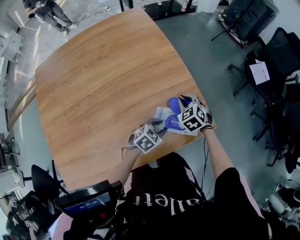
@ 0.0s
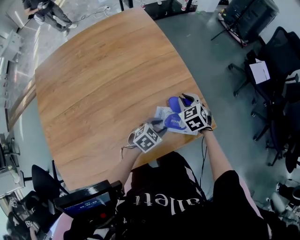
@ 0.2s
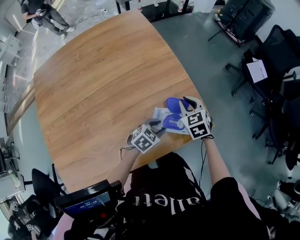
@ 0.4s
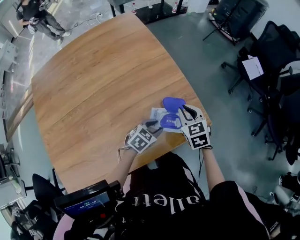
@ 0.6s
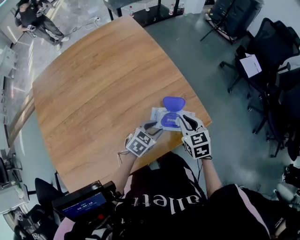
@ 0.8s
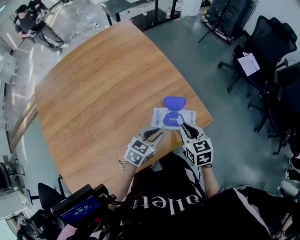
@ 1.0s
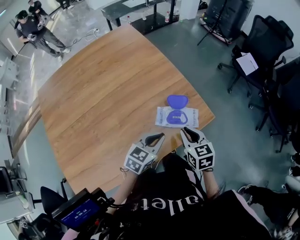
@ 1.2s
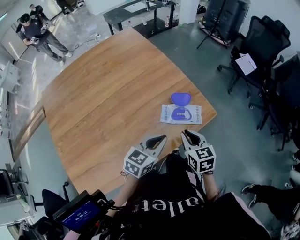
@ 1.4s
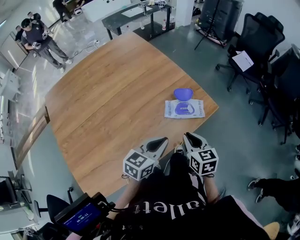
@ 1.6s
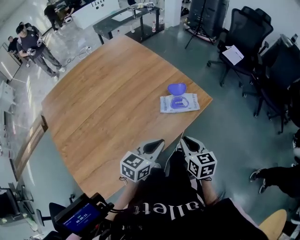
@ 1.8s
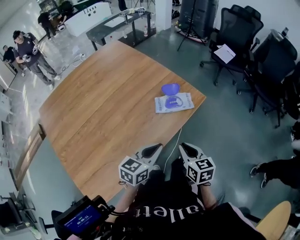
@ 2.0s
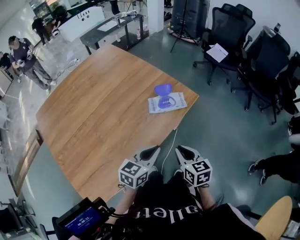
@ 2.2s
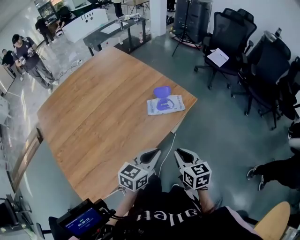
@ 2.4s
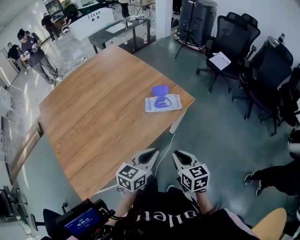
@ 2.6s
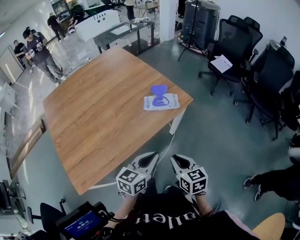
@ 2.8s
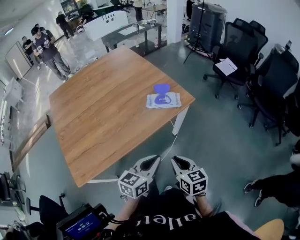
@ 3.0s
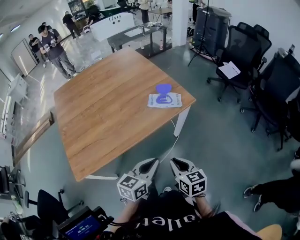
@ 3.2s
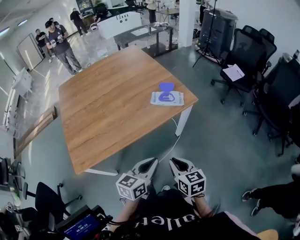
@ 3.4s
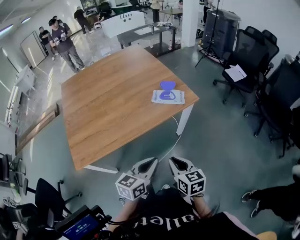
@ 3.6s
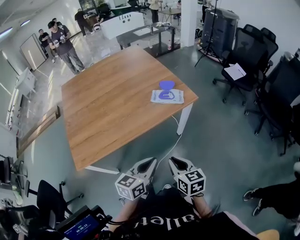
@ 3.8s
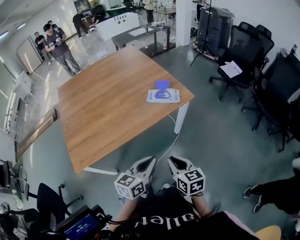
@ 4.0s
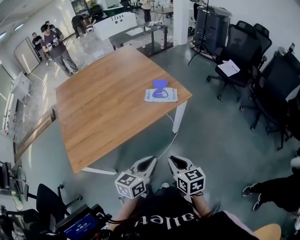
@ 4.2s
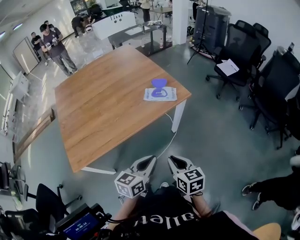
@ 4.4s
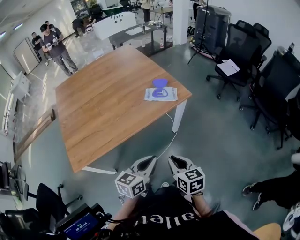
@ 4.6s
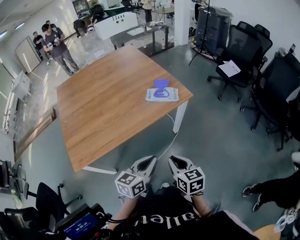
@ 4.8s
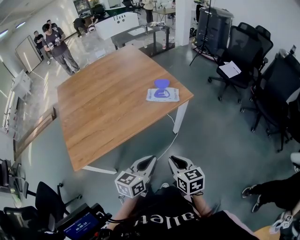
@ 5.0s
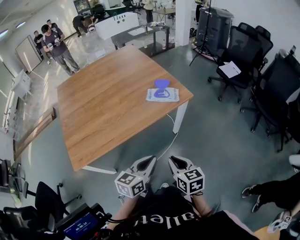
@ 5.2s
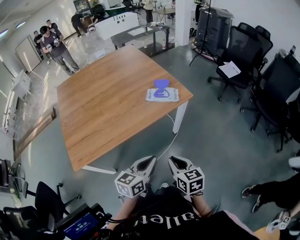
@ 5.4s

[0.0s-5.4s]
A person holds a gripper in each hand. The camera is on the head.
0.0s to 1.4s: The right gripper heads backward, covering approximately 25 cm, and rotates around the line of its fingers by about 40 degrees, clockwise from behind, while the left gripper heads upward and backward, covering roughly 20 cm, rotates approximately 30 degrees, and closes its fingers.
1.4s to 2.8s: The right gripper heads backward, covering some 25 cm, while the left gripper shifts about 25 cm backward and to the right.
2.8s to 4.0s: The grippers both shift backward by approximately 10 cm.
4.0s to 5.4s: The two grippers keep their place.

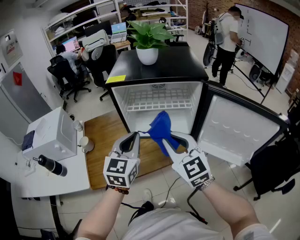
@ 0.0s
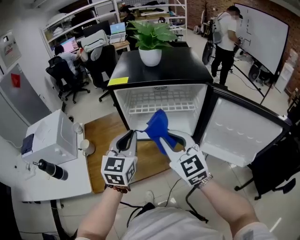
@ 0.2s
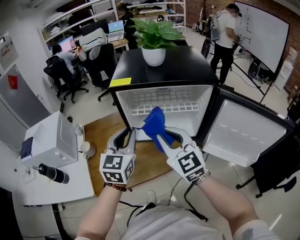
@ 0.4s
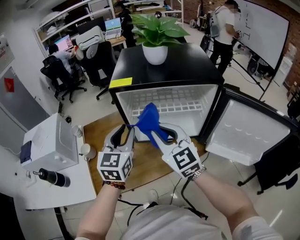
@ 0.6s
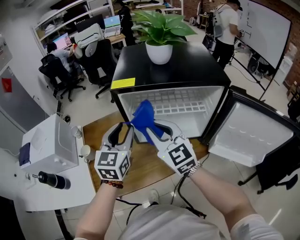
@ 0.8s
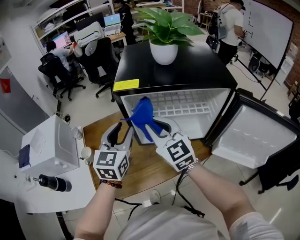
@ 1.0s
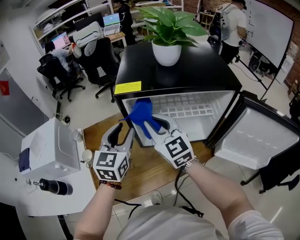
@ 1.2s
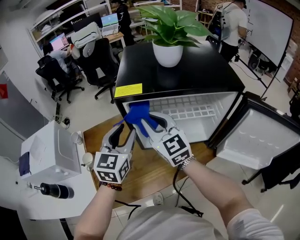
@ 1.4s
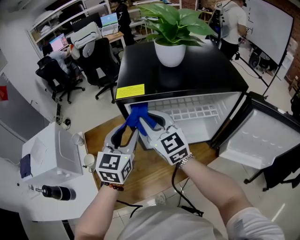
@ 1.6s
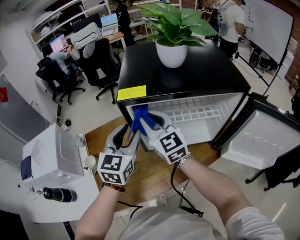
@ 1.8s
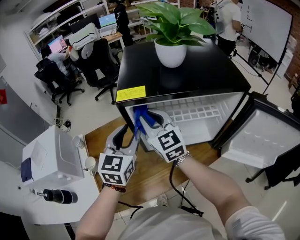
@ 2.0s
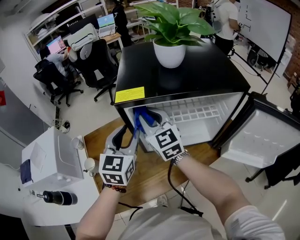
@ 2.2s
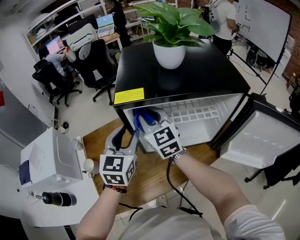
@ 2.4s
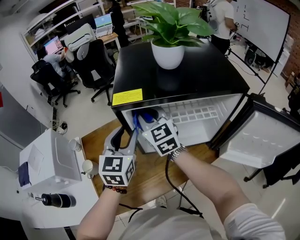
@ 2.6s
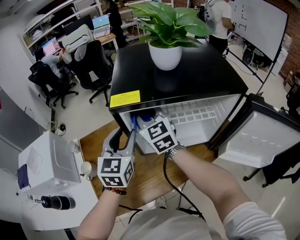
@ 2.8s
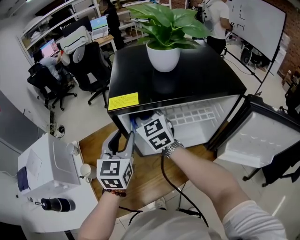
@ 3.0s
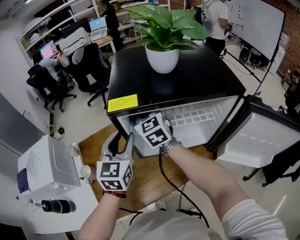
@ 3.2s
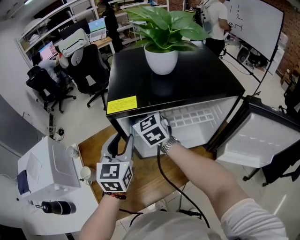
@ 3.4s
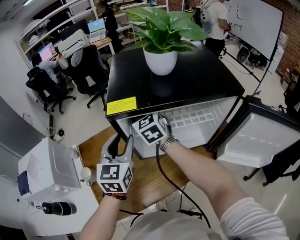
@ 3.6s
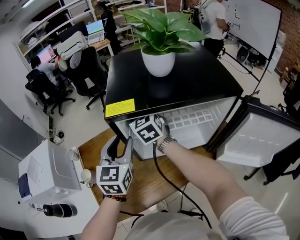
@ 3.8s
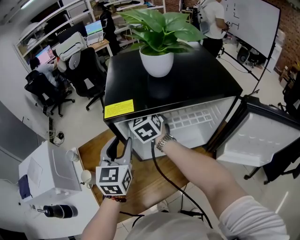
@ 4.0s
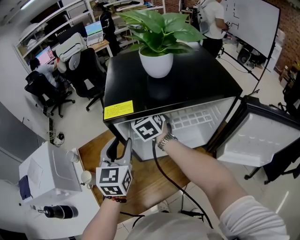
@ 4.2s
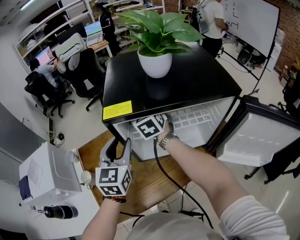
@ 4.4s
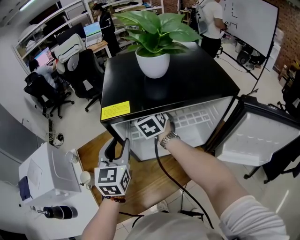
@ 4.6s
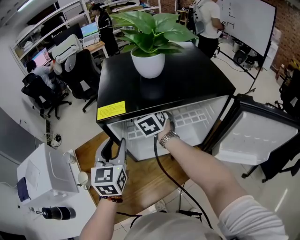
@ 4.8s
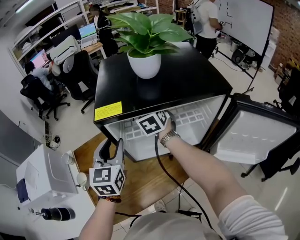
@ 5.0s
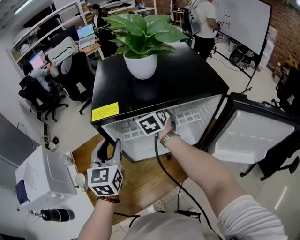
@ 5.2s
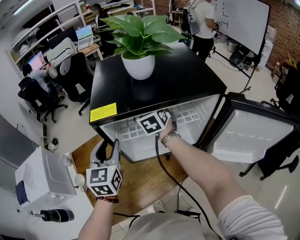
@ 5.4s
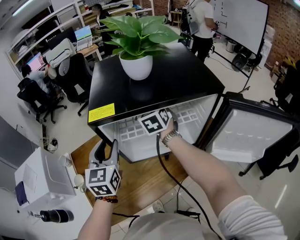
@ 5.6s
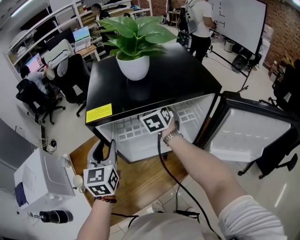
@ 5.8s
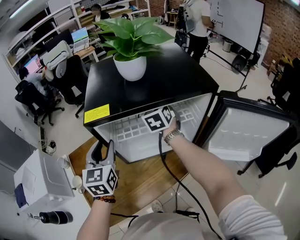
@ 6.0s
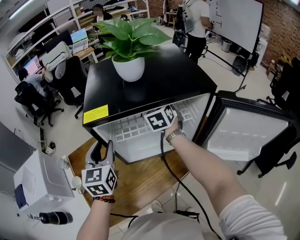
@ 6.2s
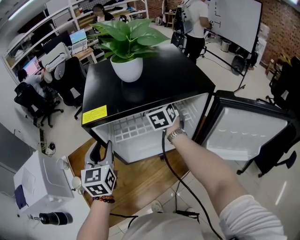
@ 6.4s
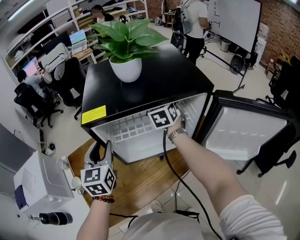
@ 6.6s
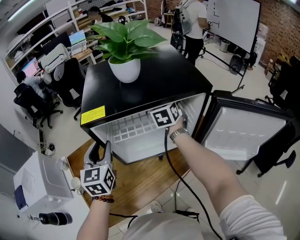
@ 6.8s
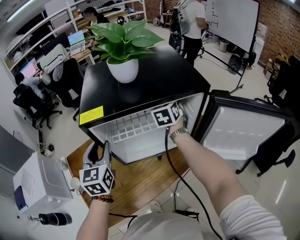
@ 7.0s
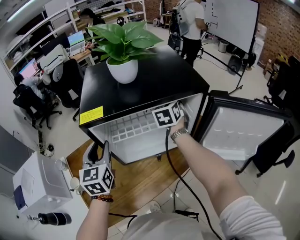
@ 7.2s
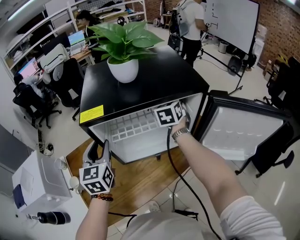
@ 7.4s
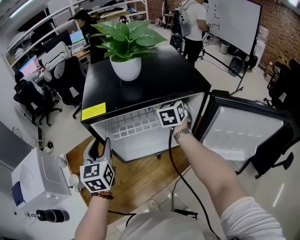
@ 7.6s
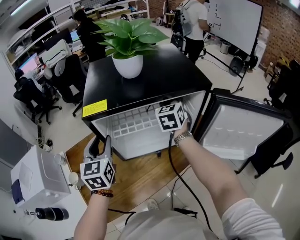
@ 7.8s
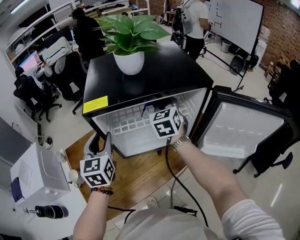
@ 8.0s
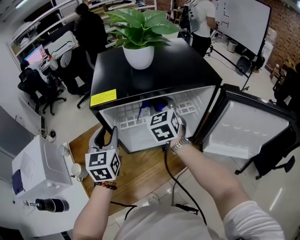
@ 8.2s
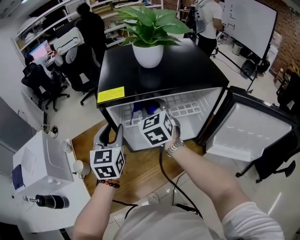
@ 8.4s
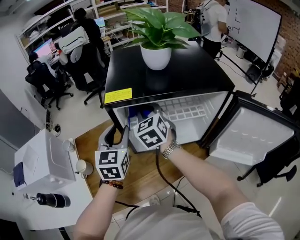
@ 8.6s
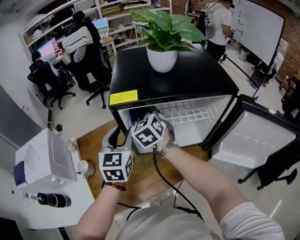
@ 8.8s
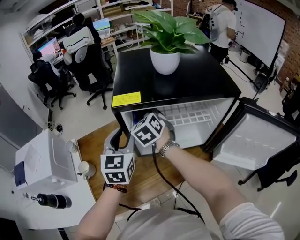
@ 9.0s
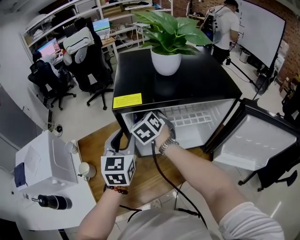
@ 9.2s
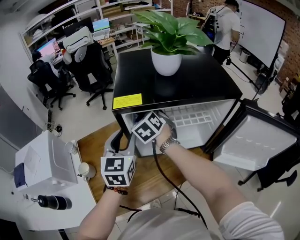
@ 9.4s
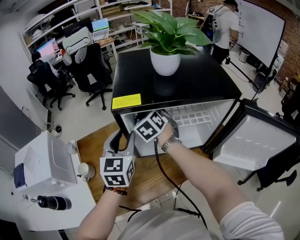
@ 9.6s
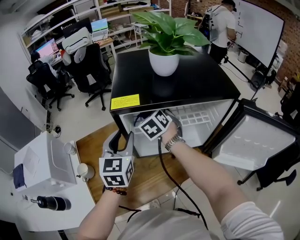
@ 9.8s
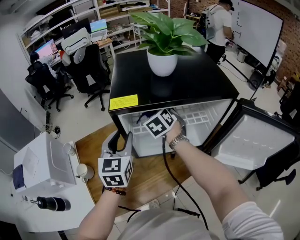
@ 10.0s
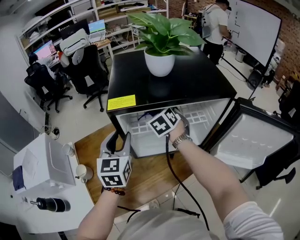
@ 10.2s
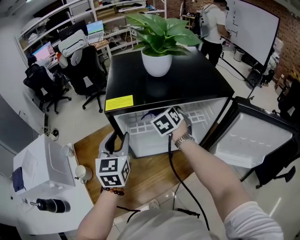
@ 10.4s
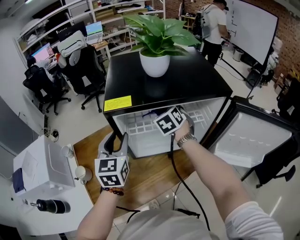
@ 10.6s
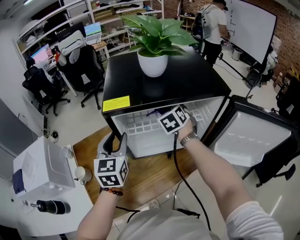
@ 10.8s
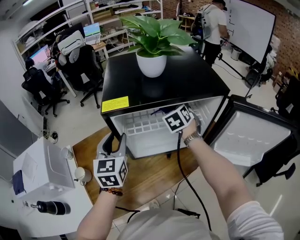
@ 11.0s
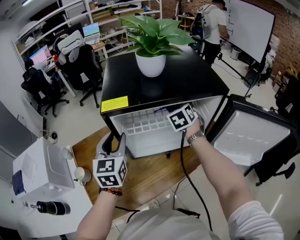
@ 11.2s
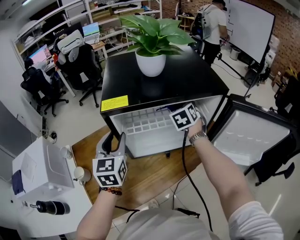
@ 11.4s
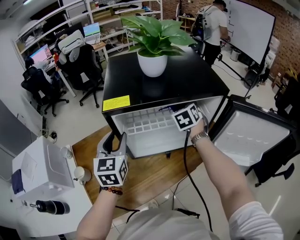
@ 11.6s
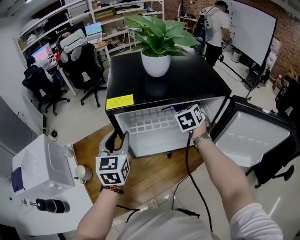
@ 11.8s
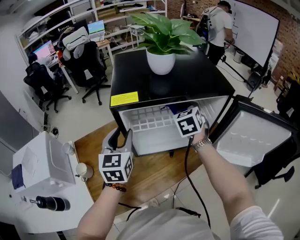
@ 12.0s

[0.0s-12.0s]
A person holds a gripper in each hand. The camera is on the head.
0.0s to 1.6s: Both grippers travel together forward and to the left, some 25 cm. The left gripper opens up.
1.6s to 3.0s: The right gripper shifts some 10 cm forward.
3.0s to 4.4s: The right gripper heads forward, covering roughly 5 cm.
4.4s to 6.0s: The right gripper shifts about 15 cm to the right.
6.0s to 7.6s: The right gripper goes approximately 10 cm to the right.
7.6s to 9.0s: The right gripper heads to the left, covering about 25 cm, and rotates roughly 30 degrees.
9.0s to 10.4s: The right gripper moves to the right, about 15 cm.
10.4s to 12.0s: The right gripper is displaced to the right by about 5 cm.

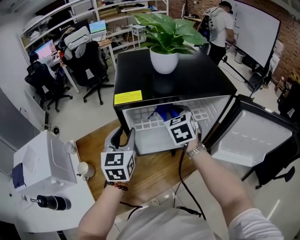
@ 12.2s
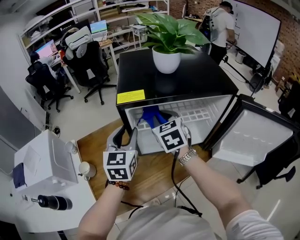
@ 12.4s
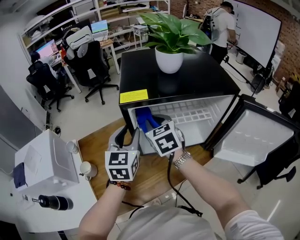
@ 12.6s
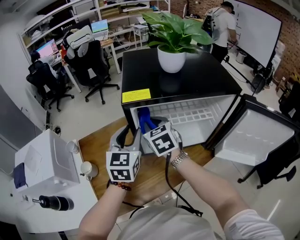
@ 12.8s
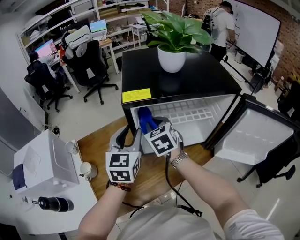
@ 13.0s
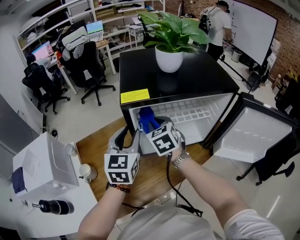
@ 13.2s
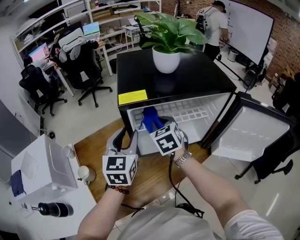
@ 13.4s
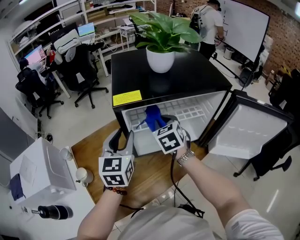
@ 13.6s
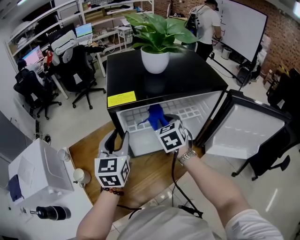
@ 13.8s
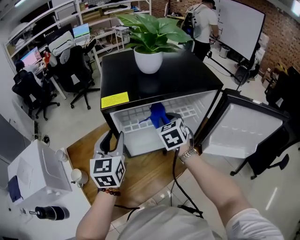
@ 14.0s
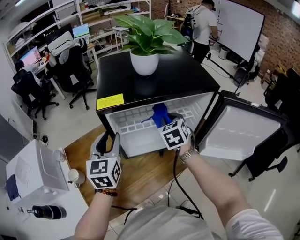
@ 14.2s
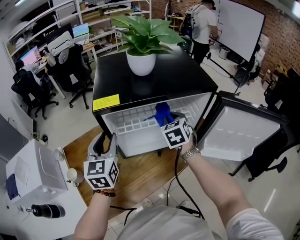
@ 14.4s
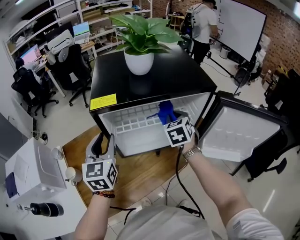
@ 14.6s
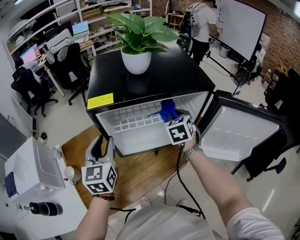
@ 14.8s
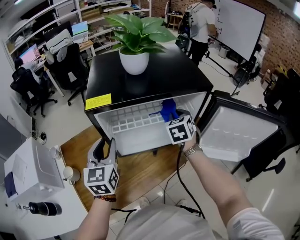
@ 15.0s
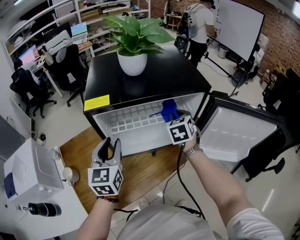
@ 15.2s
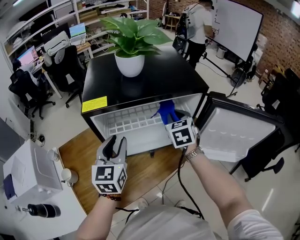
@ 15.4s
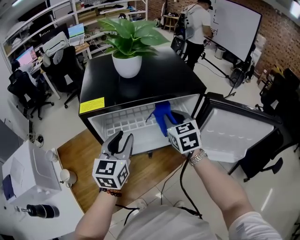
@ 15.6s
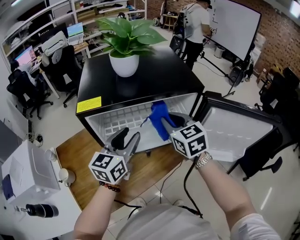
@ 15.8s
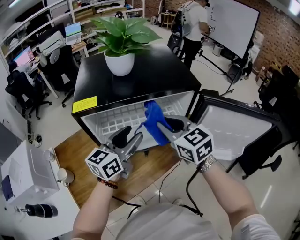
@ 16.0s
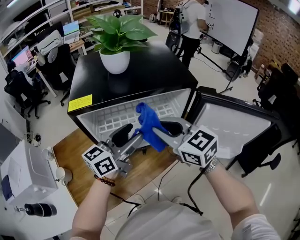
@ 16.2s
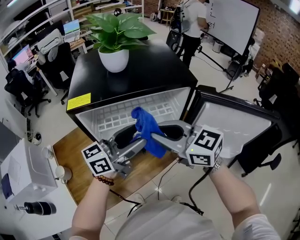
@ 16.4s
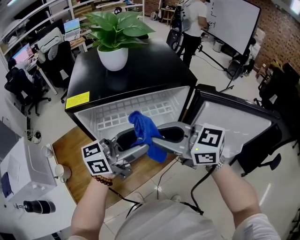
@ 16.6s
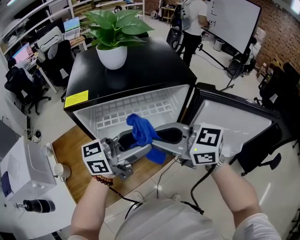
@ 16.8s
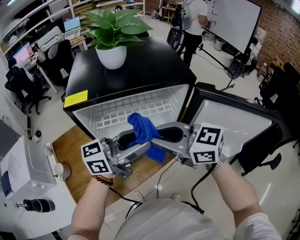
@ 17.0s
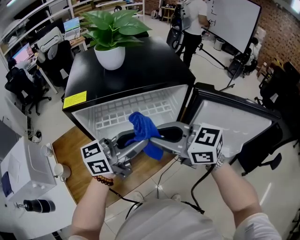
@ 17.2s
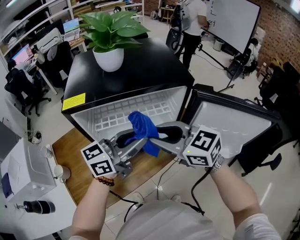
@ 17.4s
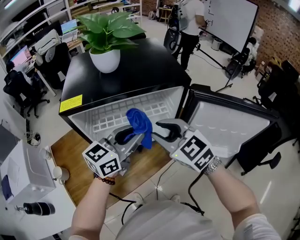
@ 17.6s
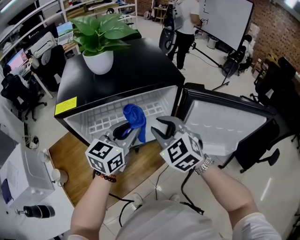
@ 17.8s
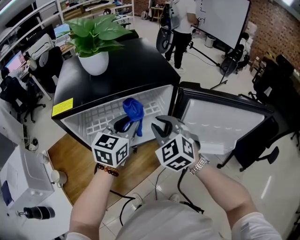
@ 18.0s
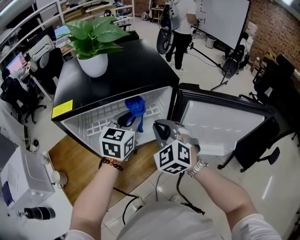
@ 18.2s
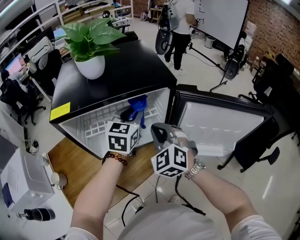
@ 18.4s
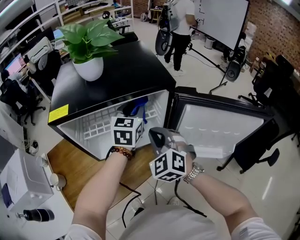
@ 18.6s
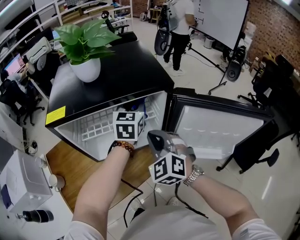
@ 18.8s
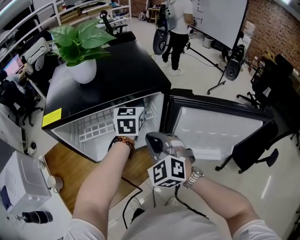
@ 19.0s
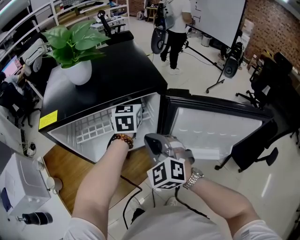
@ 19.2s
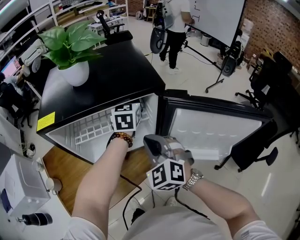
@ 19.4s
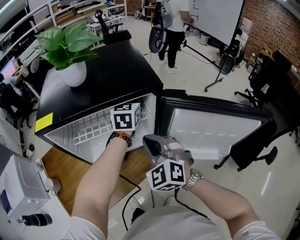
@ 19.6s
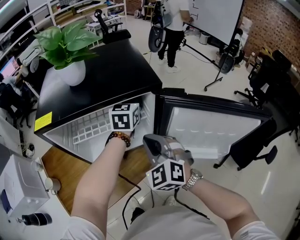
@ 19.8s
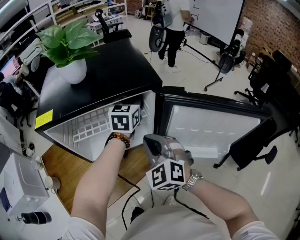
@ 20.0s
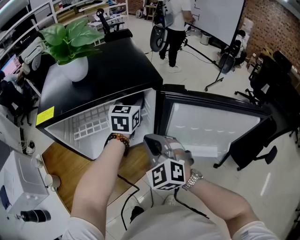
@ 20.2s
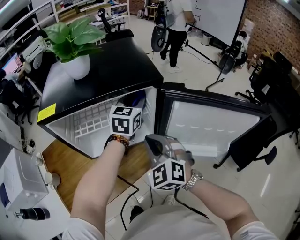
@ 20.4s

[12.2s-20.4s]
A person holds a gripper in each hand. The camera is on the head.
12.2s to 13.8s: The right gripper moves roughly 10 cm to the left and comes back.
13.8s to 15.4s: The right gripper travels to the right by approximately 15 cm. The left gripper moves to the right, approximately 10 cm.
15.4s to 17.2s: The right gripper moves about 20 cm, and rotates some 60 degrees, while the left gripper moves some 15 cm, rotates about 60 degrees, and opens, then closes once more.
17.2s to 18.8s: The left gripper shifts by some 20 cm, and changes its angle by about 60 degrees; the right gripper moves approximately 10 cm, and changes its angle by about 60 degrees.
18.8s to 20.4s: The grippers move only a little.
